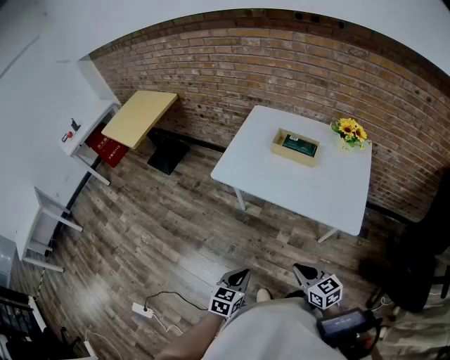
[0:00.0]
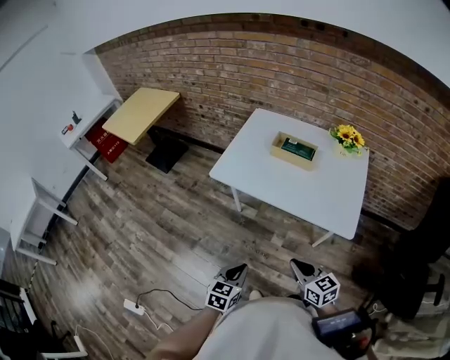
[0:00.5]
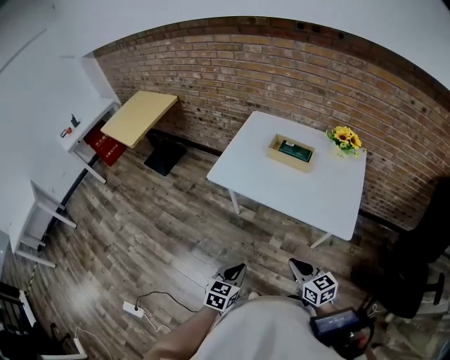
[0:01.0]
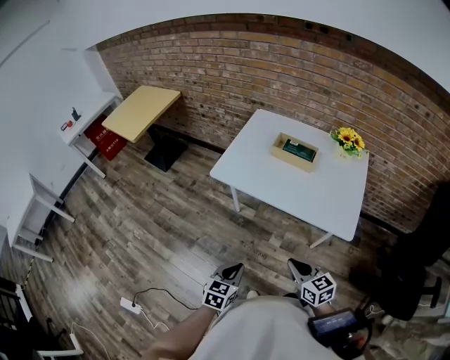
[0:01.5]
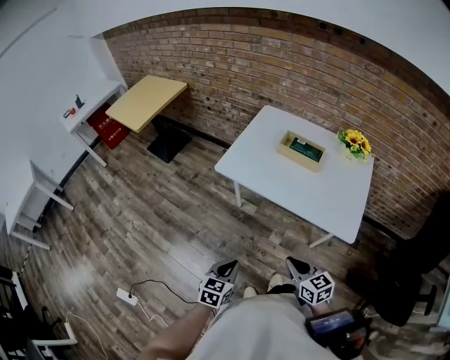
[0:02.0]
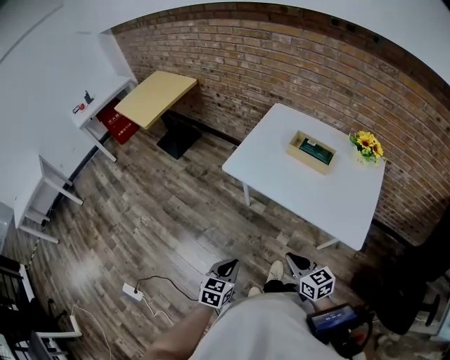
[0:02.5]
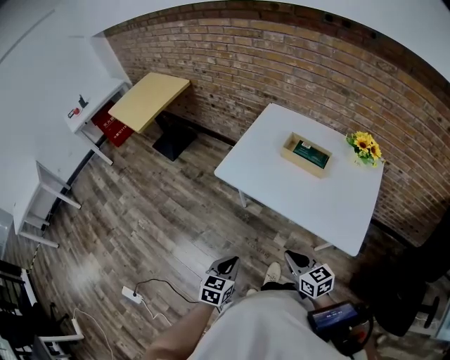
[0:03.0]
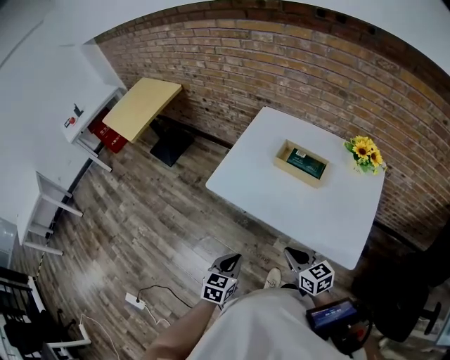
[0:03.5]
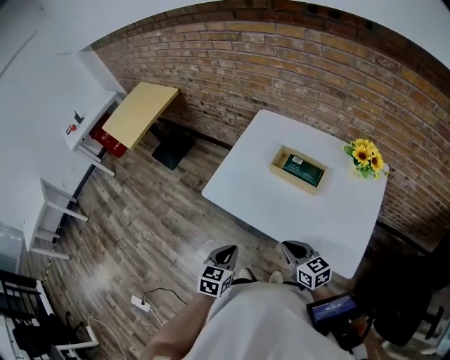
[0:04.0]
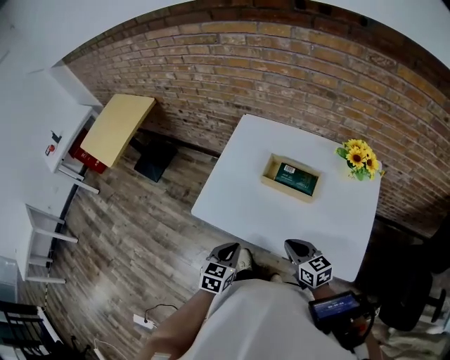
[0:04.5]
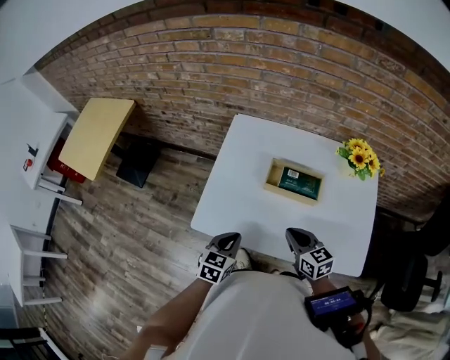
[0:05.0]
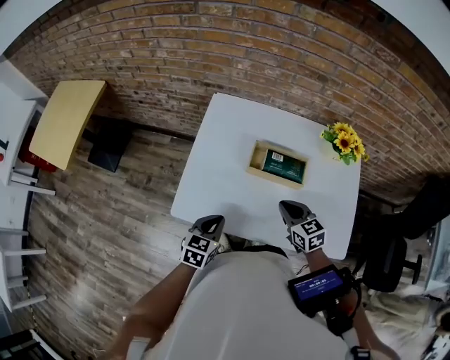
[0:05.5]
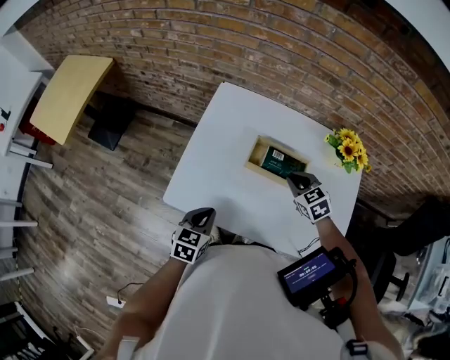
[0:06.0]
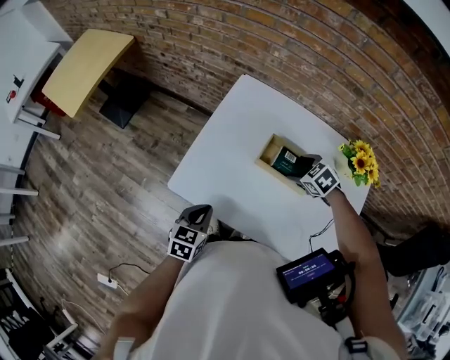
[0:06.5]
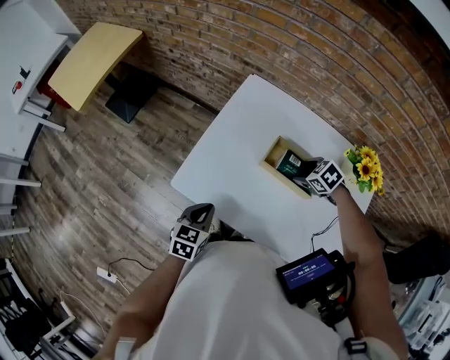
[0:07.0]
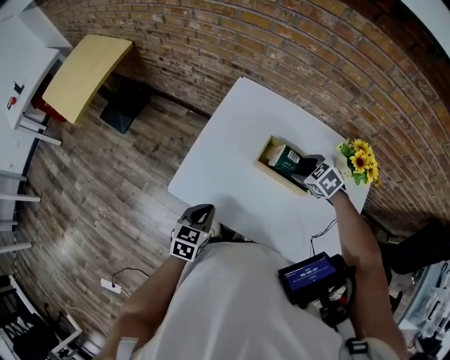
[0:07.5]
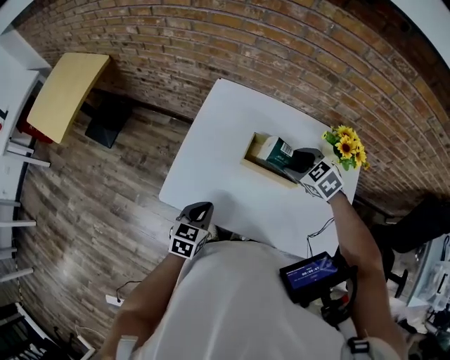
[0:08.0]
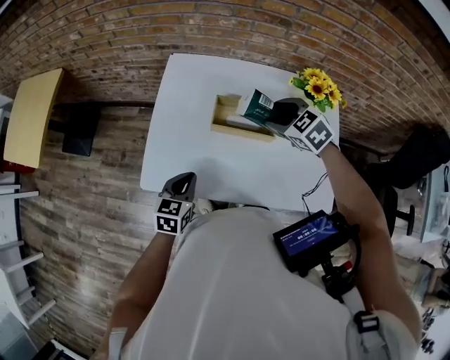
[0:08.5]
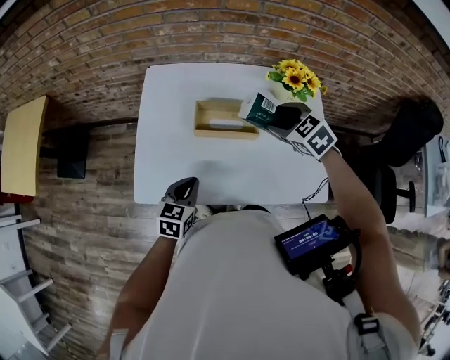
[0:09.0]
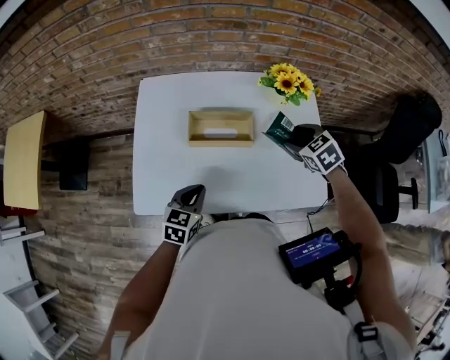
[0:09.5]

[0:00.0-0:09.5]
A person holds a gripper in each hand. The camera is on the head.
0:00.0 to 0:02.0: The grippers stay close to where they were, moving slightly.
0:02.0 to 0:04.0: The left gripper moves forward and to the right, about 20 cm. The right gripper travels forward by some 20 cm.
0:04.0 to 0:05.5: The left gripper shifts by some 20 cm, and changes its angle by approximately 20 degrees. The right gripper shifts by roughly 15 cm, and changes its angle by roughly 30 degrees.
0:05.5 to 0:07.5: The right gripper changes place by about 15 cm, turns by some 40 degrees, and opens its fingers.
0:07.5 to 0:09.5: The left gripper changes place by about 10 cm, and rotates some 30 degrees; the right gripper shifts by approximately 20 cm, and rotates approximately 30 degrees.

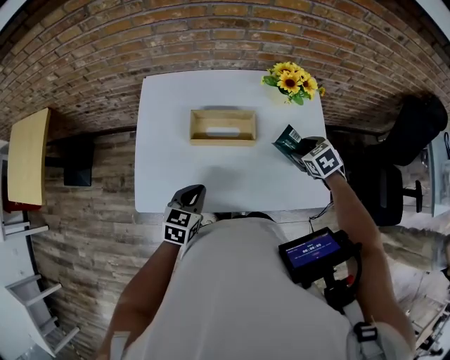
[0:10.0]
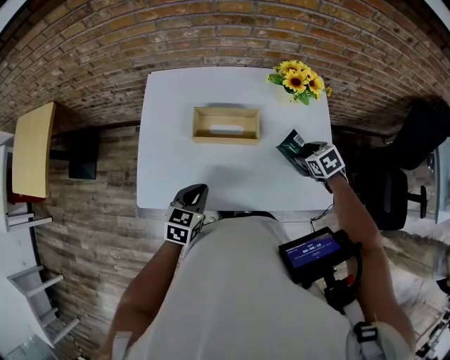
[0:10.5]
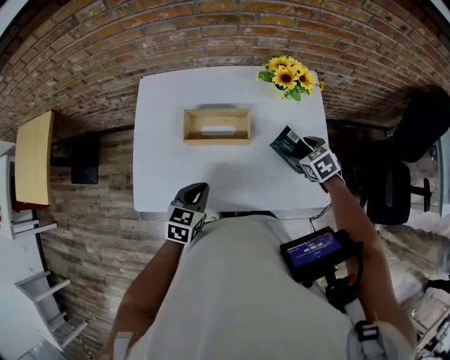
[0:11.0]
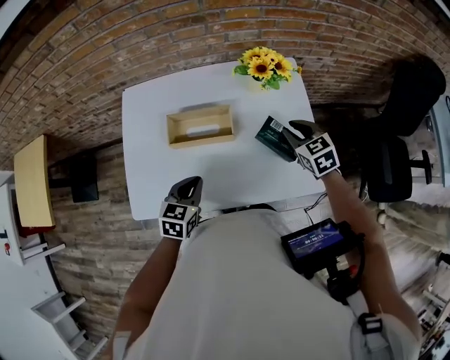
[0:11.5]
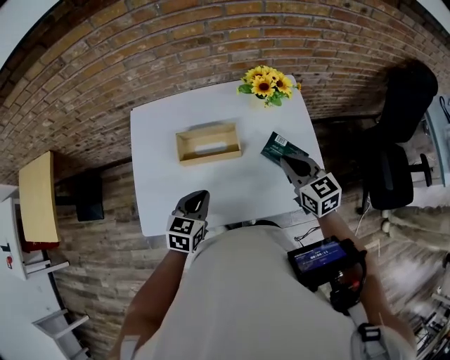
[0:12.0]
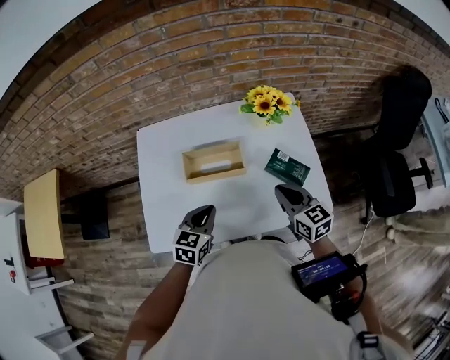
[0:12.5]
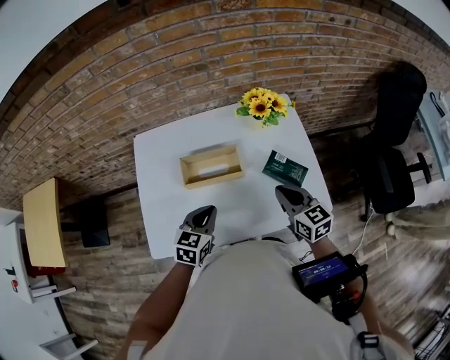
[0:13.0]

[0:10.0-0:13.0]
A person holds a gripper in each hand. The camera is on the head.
0:10.0 to 0:11.5: The right gripper shifts by some 5 cm, swivels roughly 20 degrees, and closes, while the left gripper ends up roughly 5 cm from where it was.
0:11.5 to 0:13.0: The right gripper goes some 15 cm backward and to the left, and turns by approximately 30 degrees.

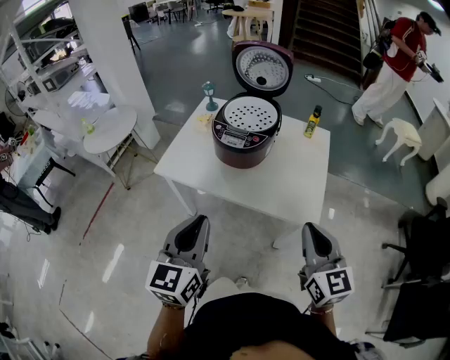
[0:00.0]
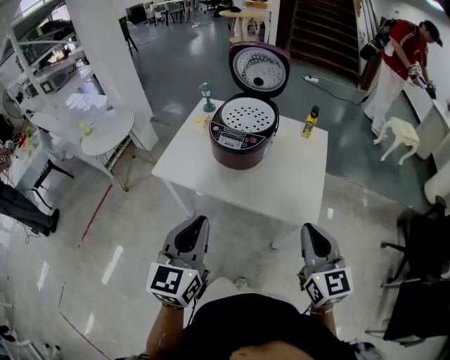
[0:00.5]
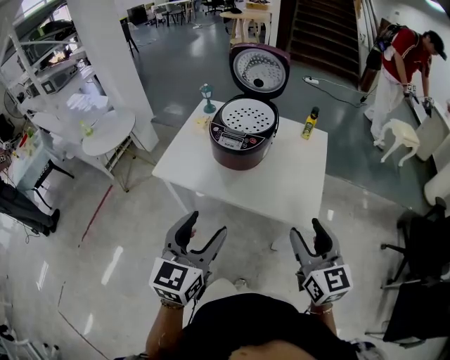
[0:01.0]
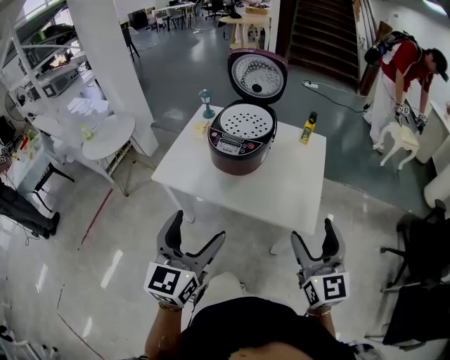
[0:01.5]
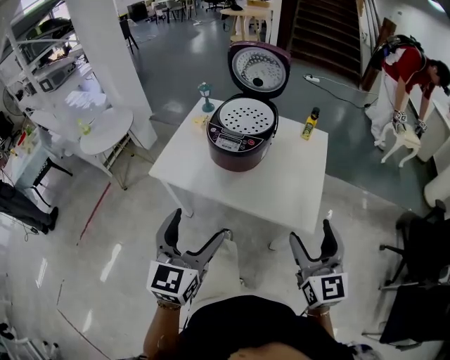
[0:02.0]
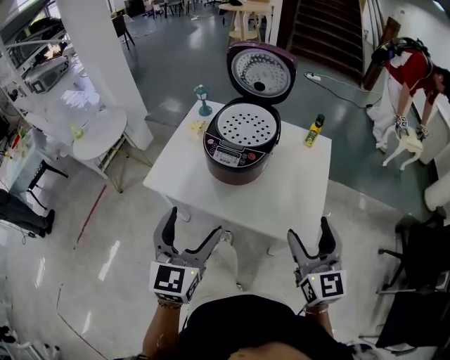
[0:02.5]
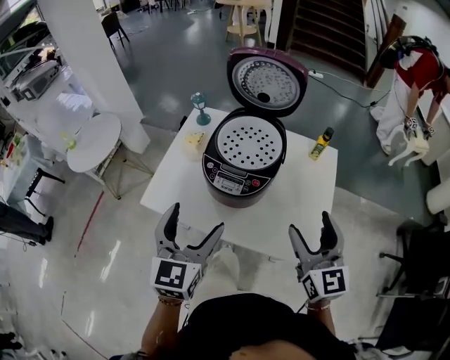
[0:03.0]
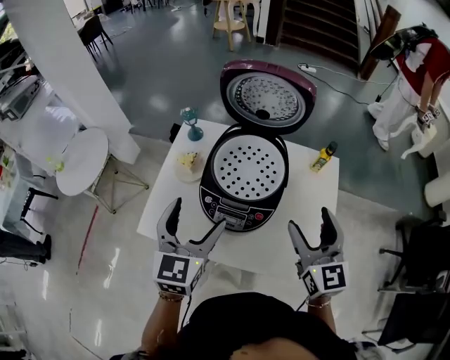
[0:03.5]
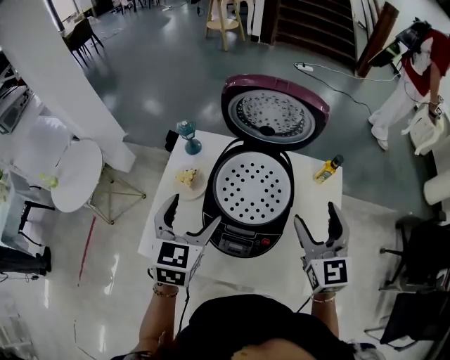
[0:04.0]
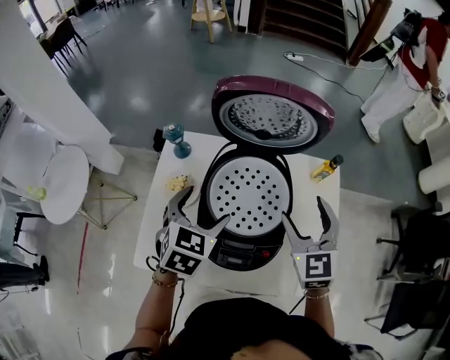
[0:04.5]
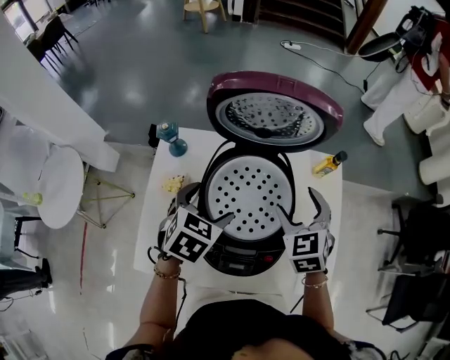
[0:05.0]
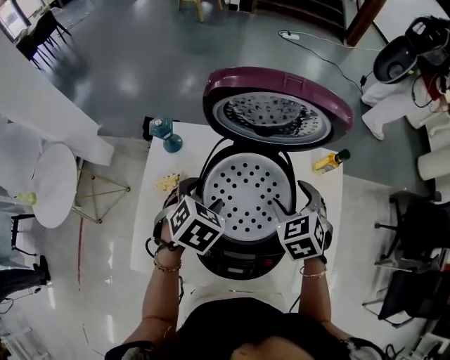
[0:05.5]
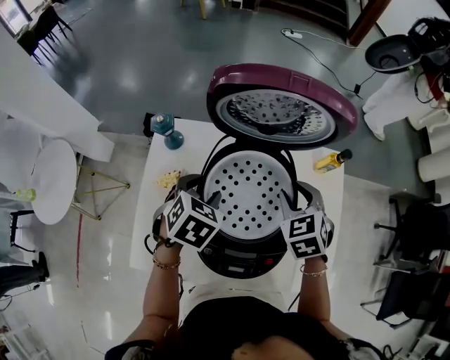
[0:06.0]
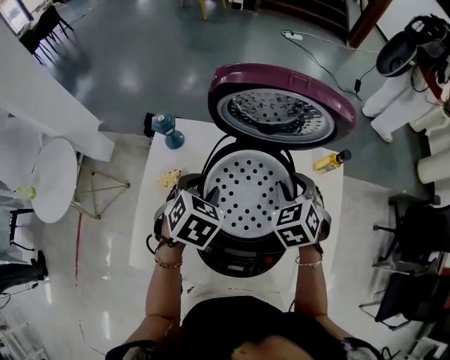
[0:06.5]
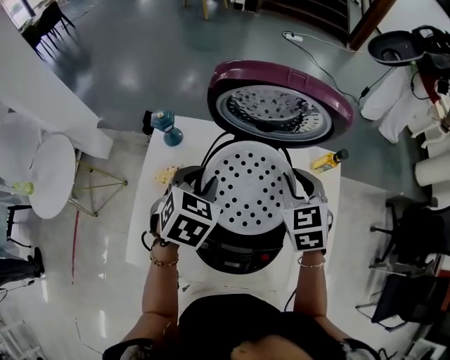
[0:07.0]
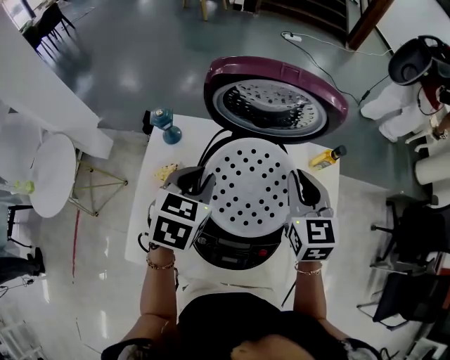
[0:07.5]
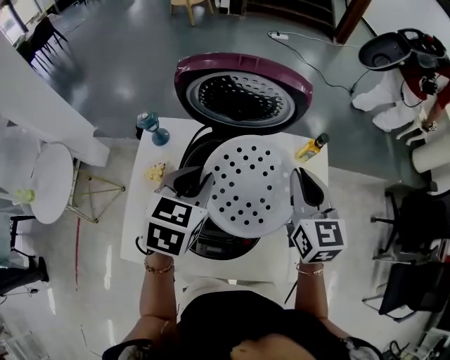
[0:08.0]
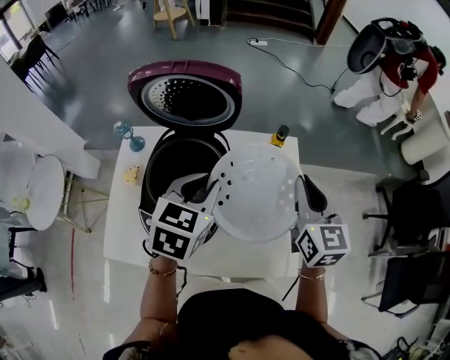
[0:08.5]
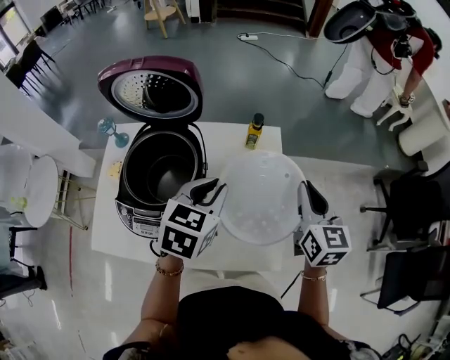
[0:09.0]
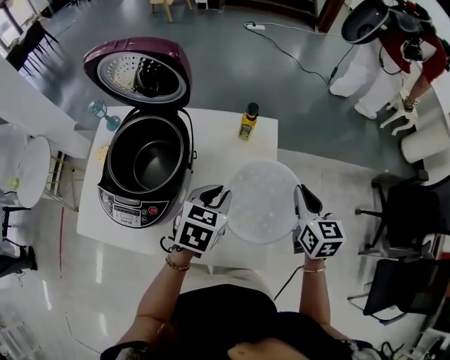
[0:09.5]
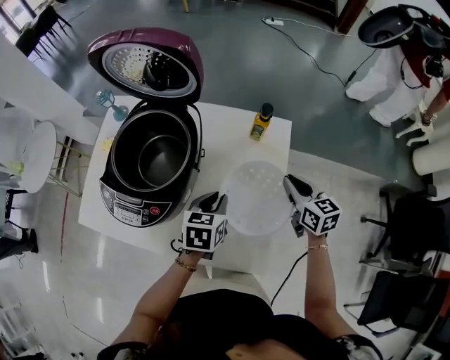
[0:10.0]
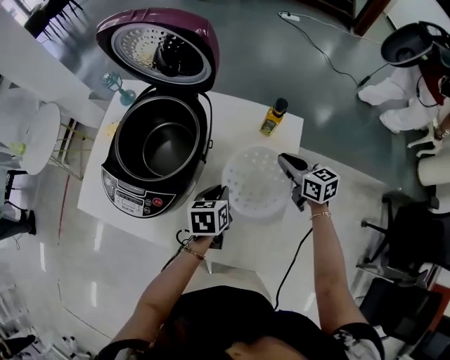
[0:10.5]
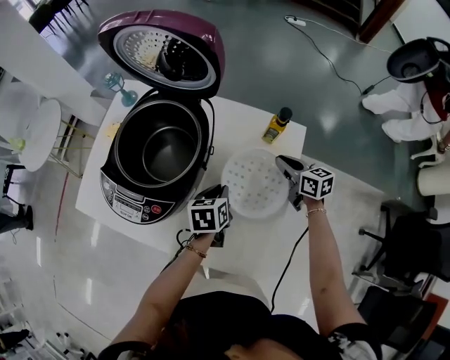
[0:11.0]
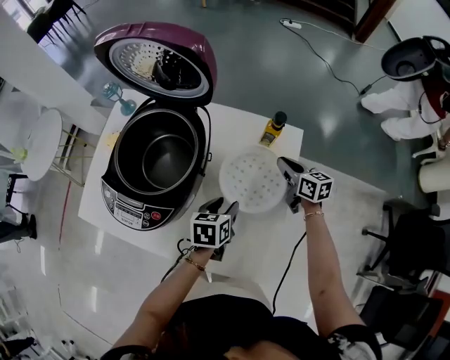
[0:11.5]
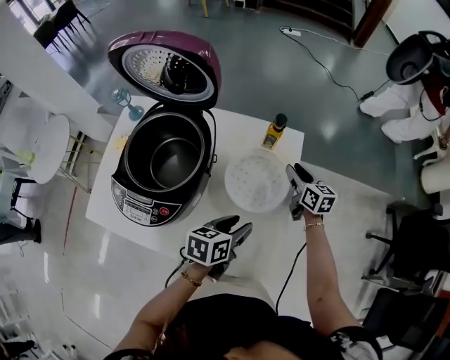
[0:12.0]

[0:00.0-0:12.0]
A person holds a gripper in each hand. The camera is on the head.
0:00.0 to 0:02.0: The left gripper opens, while the right gripper opens.
0:02.0 to 0:04.0: Both grippers travel together forward, about 40 cm.
0:04.0 to 0:06.0: The right gripper goes about 20 cm downward, forward and to the left, points its fingers approximately 40 degrees further downward, and closes; the left gripper heads forward and downward, covering about 15 cm, changes its angle by some 30 degrees, and closes.
0:06.0 to 0:08.0: Both grippers move upward and to the right, approximately 10 cm. The left gripper turns by about 20 degrees, while the right gripper angles its fingers upward, by approximately 30 degrees.
0:08.0 to 0:10.0: Both grippers travel together to the right and downward, some 30 cm. The right gripper changes its angle by roughly 30 degrees; the left gripper swivels about 20 degrees.
0:10.0 to 0:12.0: The left gripper shifts by approximately 5 cm, and changes its angle by some 20 degrees. Meanwhile the right gripper ends up approximately 10 cm from where it was.

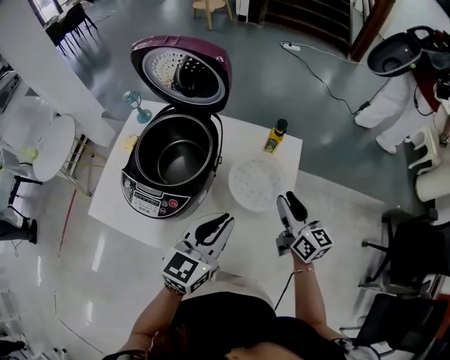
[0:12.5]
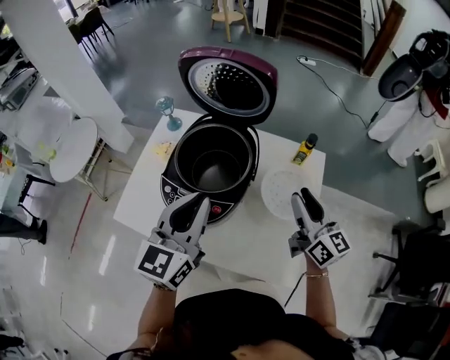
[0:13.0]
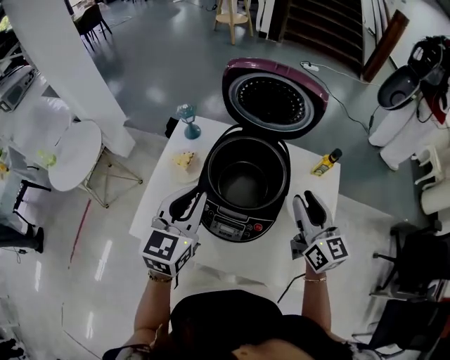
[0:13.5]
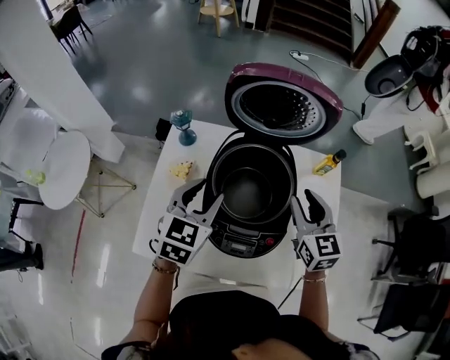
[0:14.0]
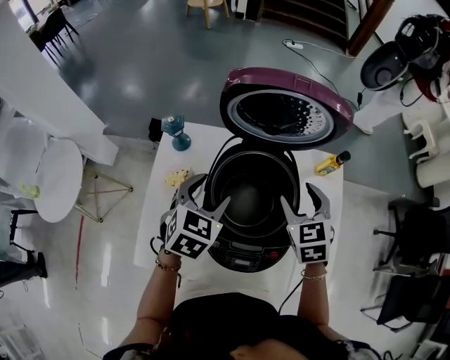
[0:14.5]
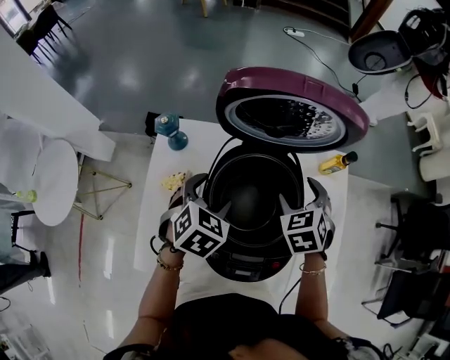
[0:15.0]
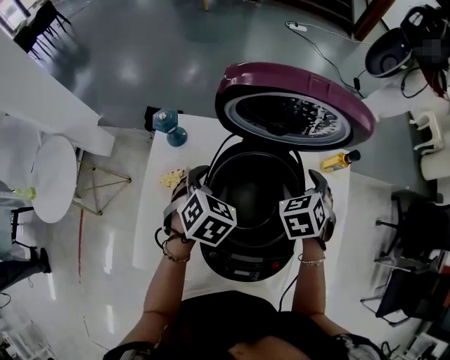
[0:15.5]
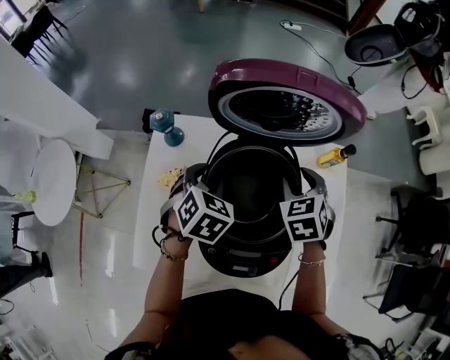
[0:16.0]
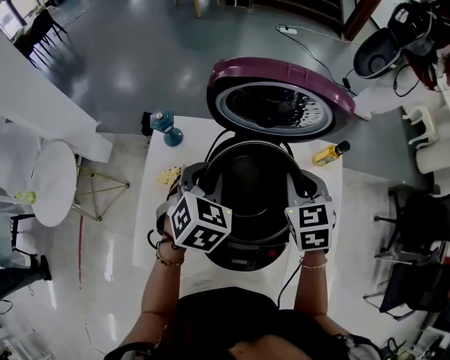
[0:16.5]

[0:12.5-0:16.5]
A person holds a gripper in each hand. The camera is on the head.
0:12.5 to 0:14.5: The left gripper shifts approximately 35 cm to the left and forward, changes its angle by about 30 degrees, and opens, while the right gripper travels to the left by about 25 cm, and angles its fingers downward, by about 30 degrees.
0:14.5 to 0:16.5: The left gripper closes, while the right gripper travels downward and back again, roughly 5 cm each way, and closes.
